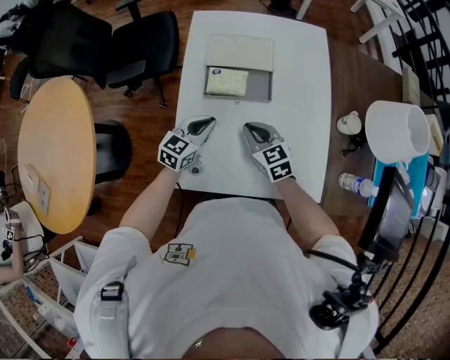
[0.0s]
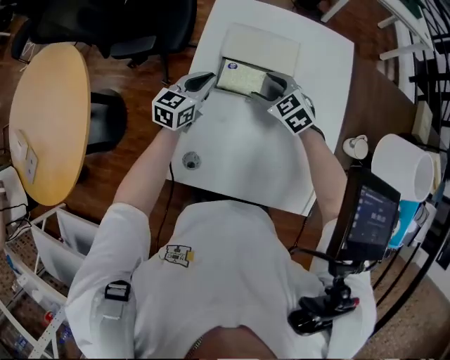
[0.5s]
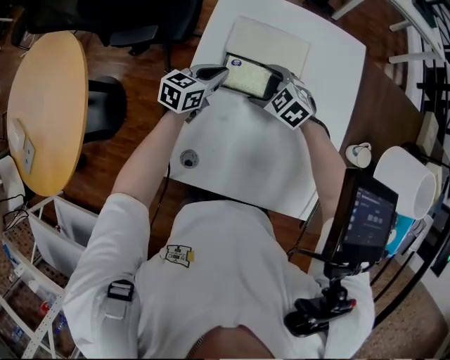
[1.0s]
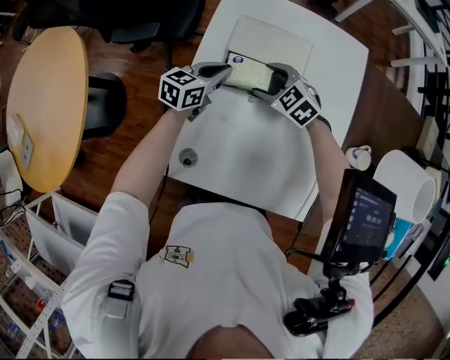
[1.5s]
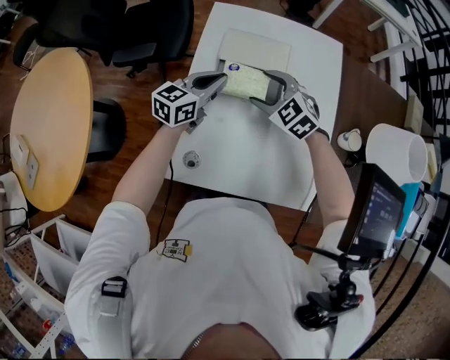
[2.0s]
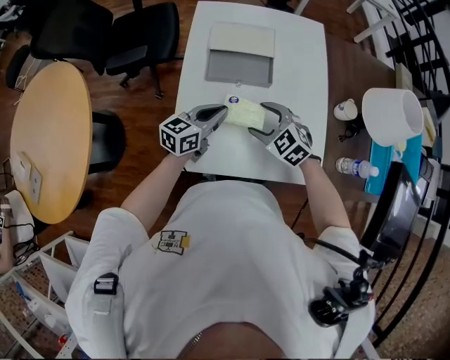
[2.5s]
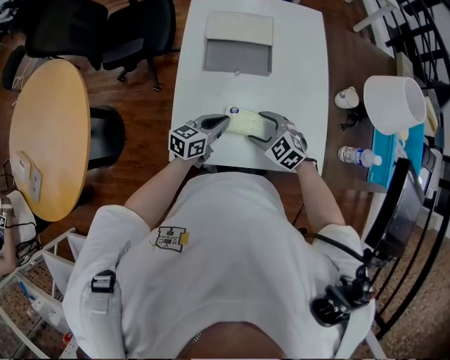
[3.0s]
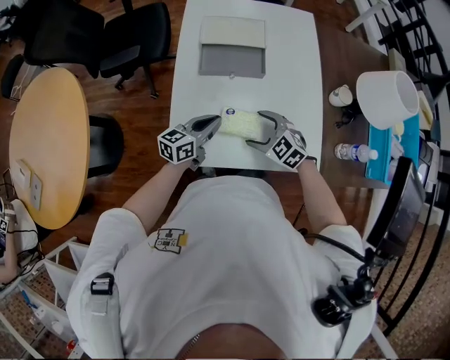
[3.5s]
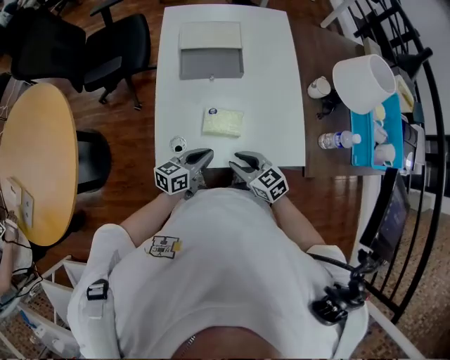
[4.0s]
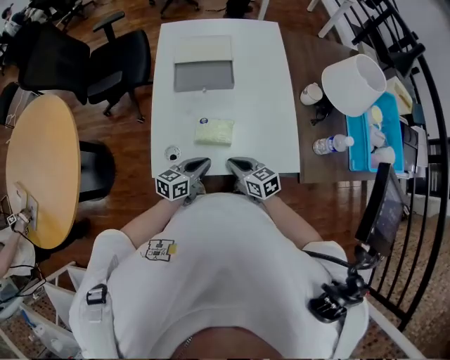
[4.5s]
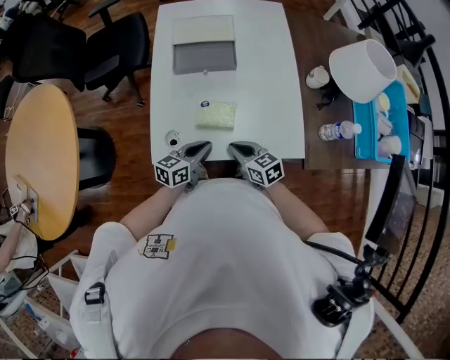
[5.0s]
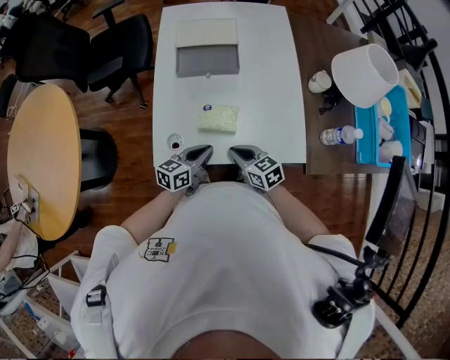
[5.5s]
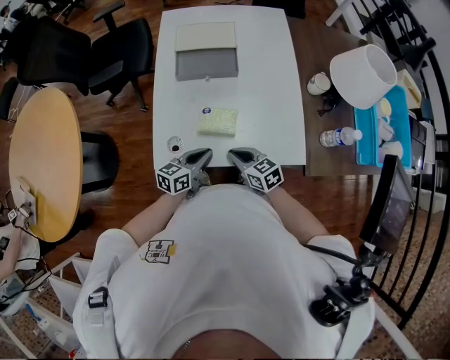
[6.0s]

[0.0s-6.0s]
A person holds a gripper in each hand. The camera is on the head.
0.0s to 2.0s: The grippers both shift forward and upward by approximately 15 cm. The right gripper changes its angle by roughly 40 degrees, and opens.
2.0s to 4.0s: The left gripper shifts roughly 30 cm backward and downward, and turns by approximately 20 degrees, while the right gripper goes some 30 cm backward, turns by about 40 degrees, and closes.
4.0s to 6.0s: The grippers make only small movements.

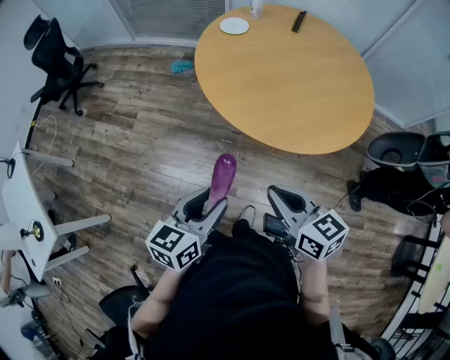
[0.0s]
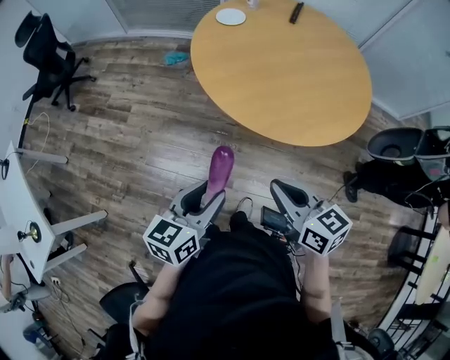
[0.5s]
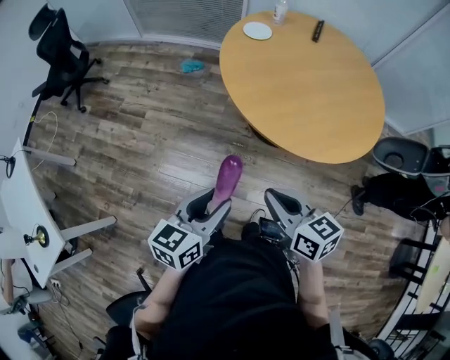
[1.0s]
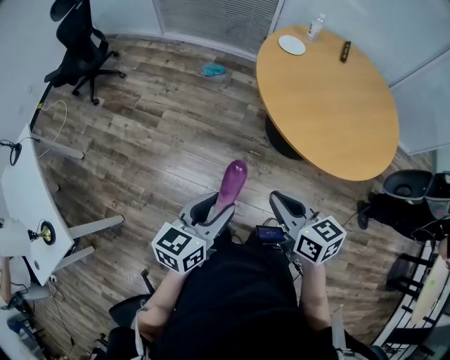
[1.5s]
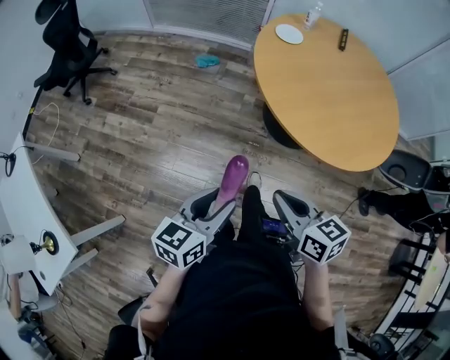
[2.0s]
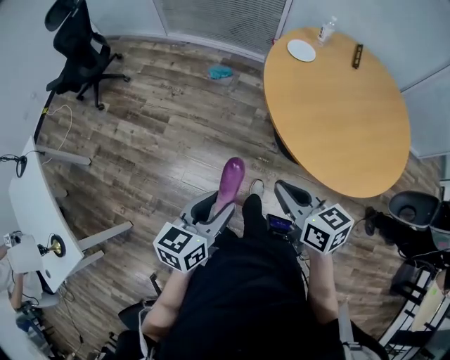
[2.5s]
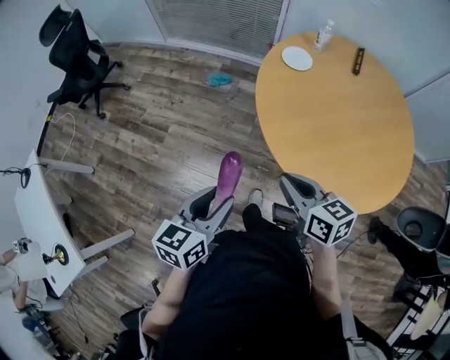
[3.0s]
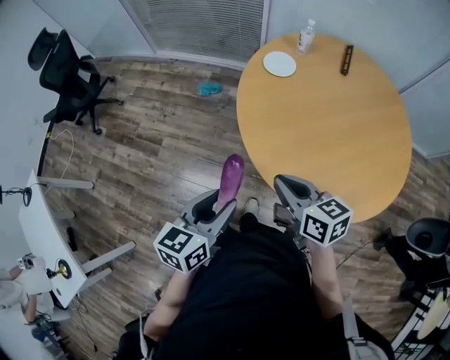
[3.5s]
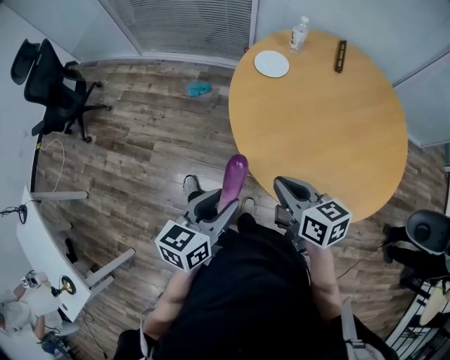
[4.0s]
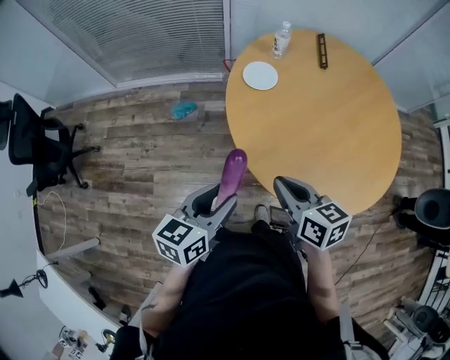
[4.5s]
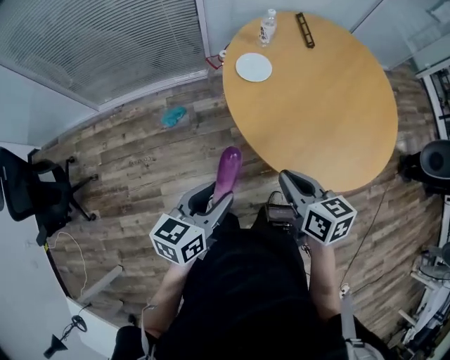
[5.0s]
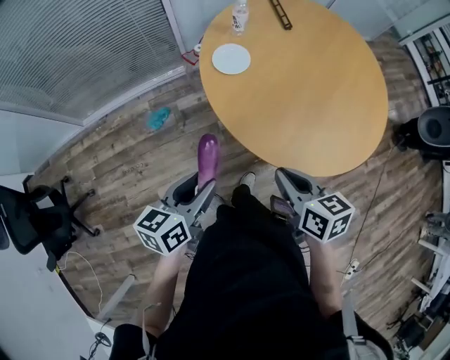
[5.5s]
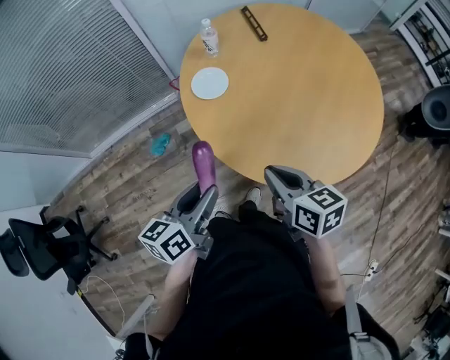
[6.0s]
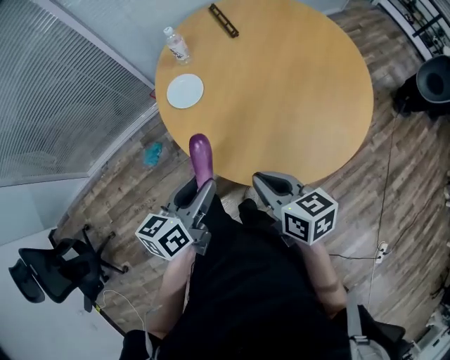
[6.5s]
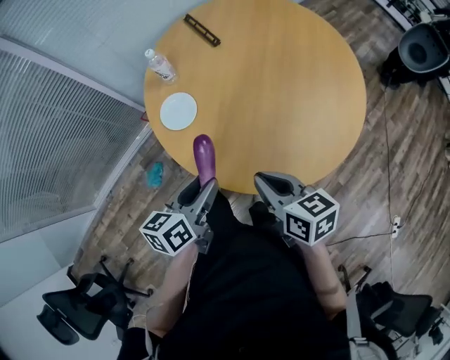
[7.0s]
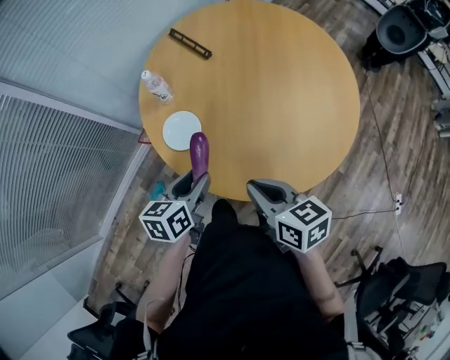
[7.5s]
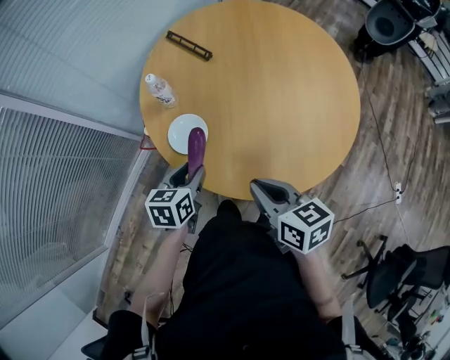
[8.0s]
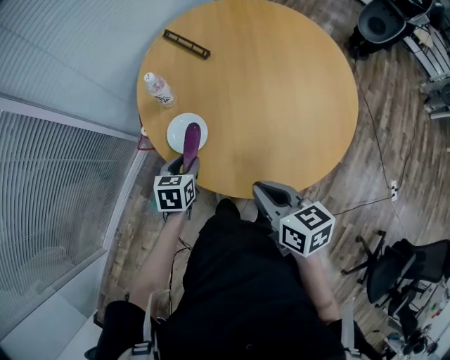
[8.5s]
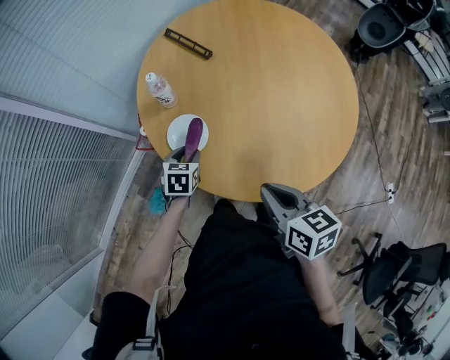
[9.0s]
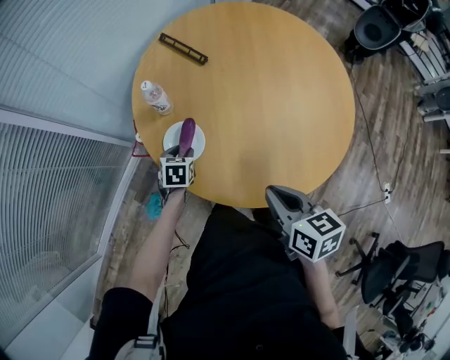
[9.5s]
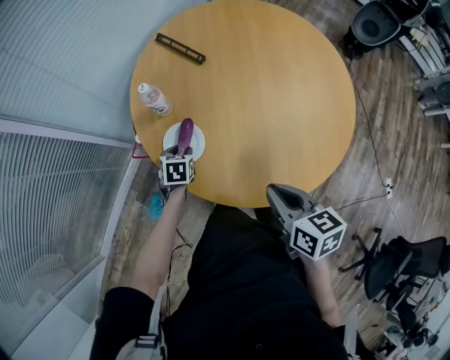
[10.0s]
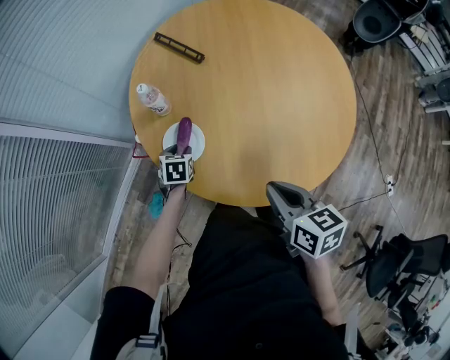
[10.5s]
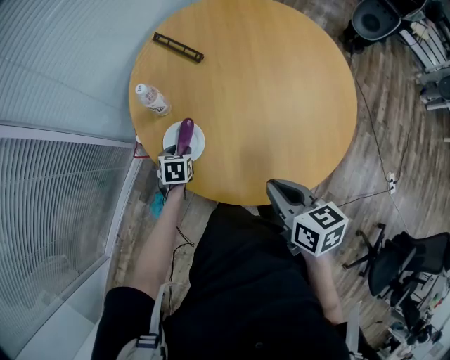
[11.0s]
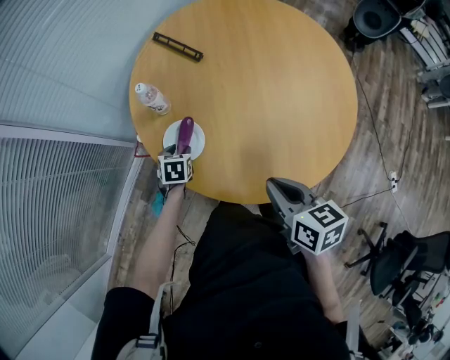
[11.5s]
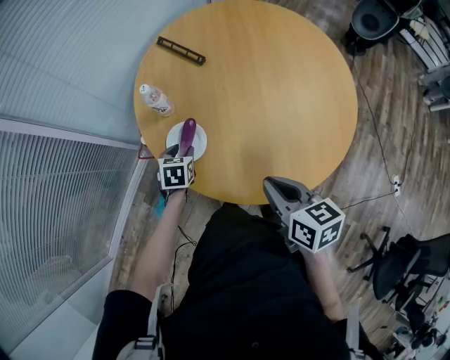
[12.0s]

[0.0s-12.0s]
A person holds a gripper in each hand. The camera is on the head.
0.0s to 2.0s: The grippers both shift to the left by about 25 cm.
2.0s to 4.0s: Both grippers move forward and to the right, about 30 cm.
4.0s to 6.0s: The right gripper changes place by some 15 cm, and turns by some 40 degrees. Meanwhile the left gripper ends up approximately 25 cm from where it was, and swivels roughly 30 degrees.
6.0s to 8.0s: The left gripper changes place by some 30 cm, and rotates roughly 40 degrees, while the right gripper ends up roughly 15 cm from where it was, and swivels some 30 degrees.
8.0s to 10.0s: The left gripper shifts about 20 cm downward and forward, and swivels about 20 degrees.
10.0s to 12.0s: There are only small adjustments of the grippers.

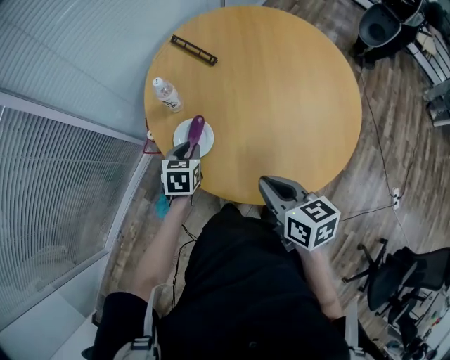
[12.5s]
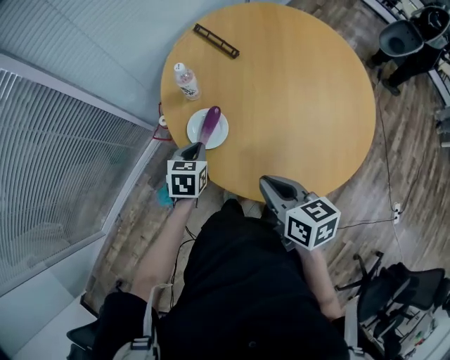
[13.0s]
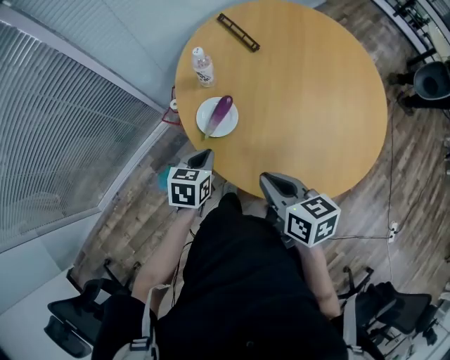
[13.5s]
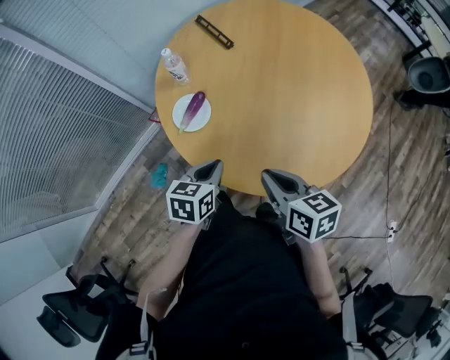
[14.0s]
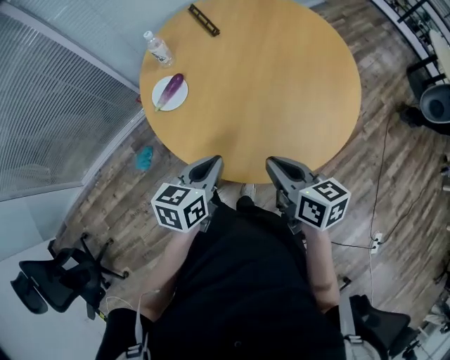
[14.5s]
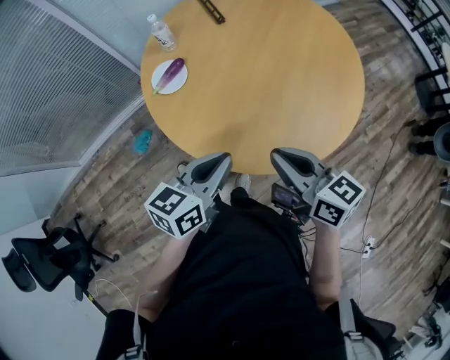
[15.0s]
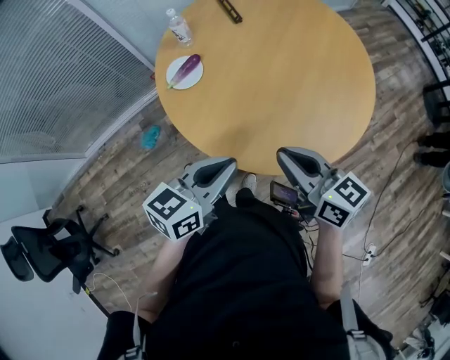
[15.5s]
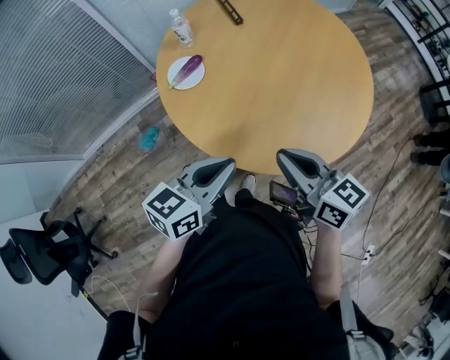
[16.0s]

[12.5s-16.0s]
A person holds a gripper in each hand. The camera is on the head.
12.5s to 14.5s: The left gripper heads backward, to the right and upward, covering about 35 cm, and turns by roughly 30 degrees, while the right gripper moves to the right and backward, roughly 20 cm.
14.5s to 16.0s: The left gripper heads upward and backward, covering about 10 cm. Meanwhile the right gripper ends up roughly 5 cm from where it was, and turns by roughly 20 degrees.

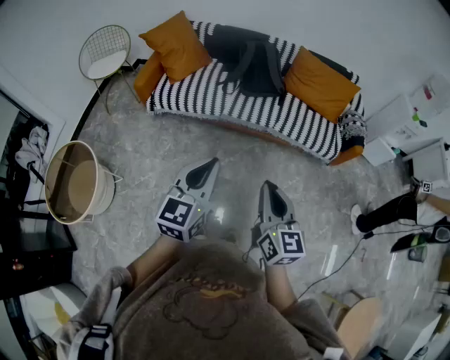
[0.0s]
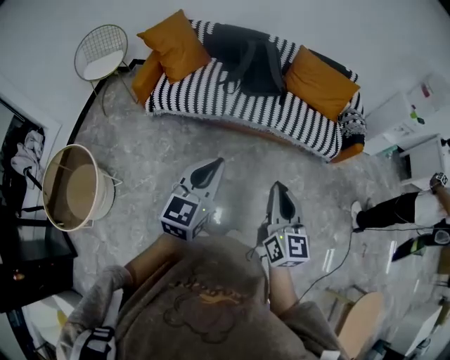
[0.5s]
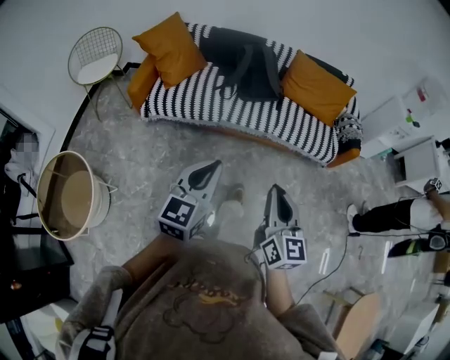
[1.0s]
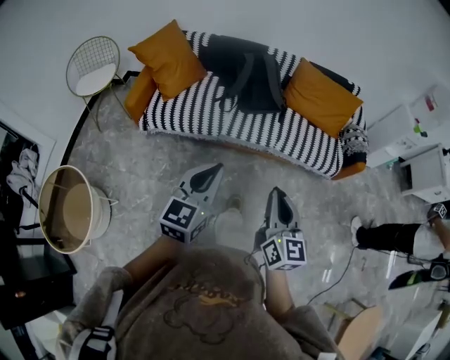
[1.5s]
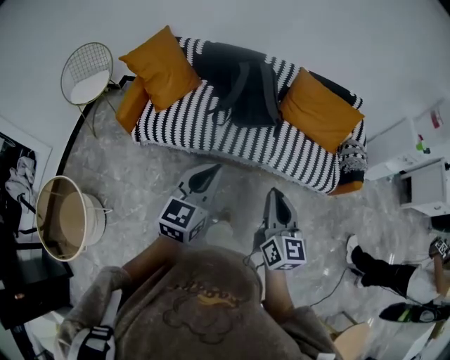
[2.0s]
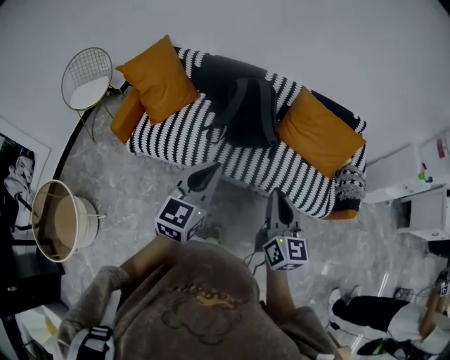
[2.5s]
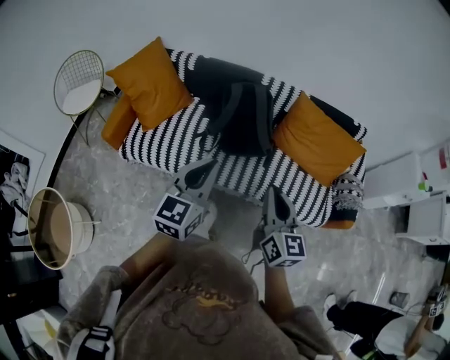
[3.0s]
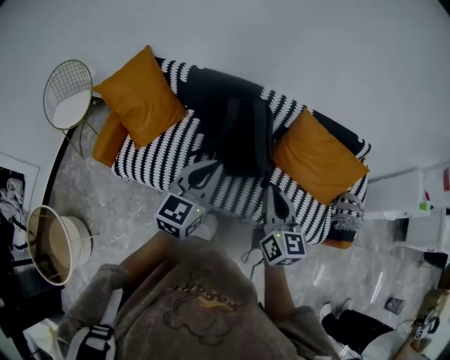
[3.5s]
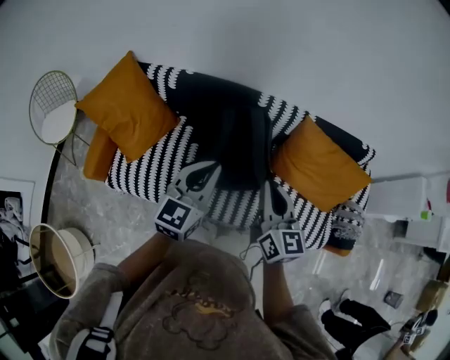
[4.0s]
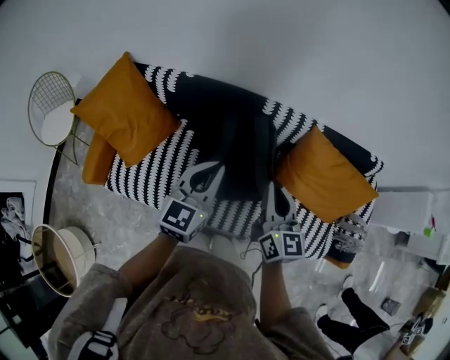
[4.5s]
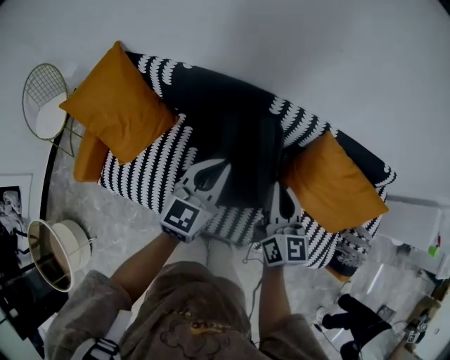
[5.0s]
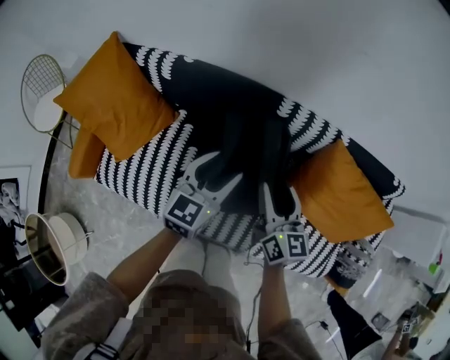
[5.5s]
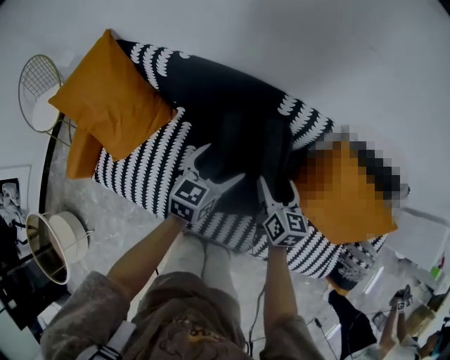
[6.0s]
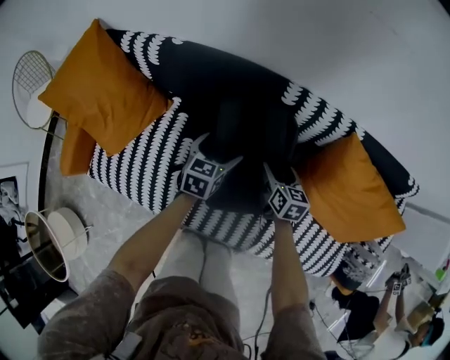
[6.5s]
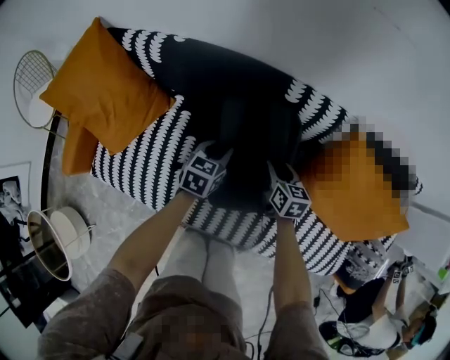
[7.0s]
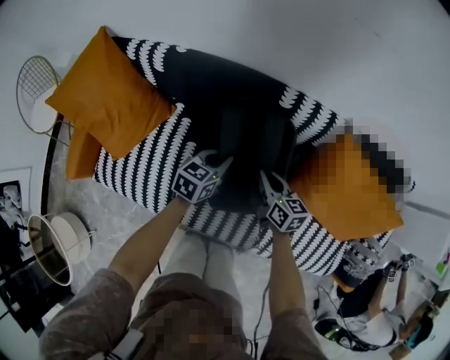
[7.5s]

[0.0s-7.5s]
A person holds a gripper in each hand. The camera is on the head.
0.0s to 2.0s: The two grippers go some 25 cm forward.
2.0s to 4.0s: Both grippers are carried forward, roughly 50 cm.
4.0s to 5.5s: The left gripper moves downward and forward, approximately 25 cm, and opens; the right gripper goes approximately 25 cm forward and downward, and opens up.
5.5s to 7.5s: Both grippers move downward, about 20 cm. The left gripper changes its angle by roughly 20 degrees, and closes up. The right gripper turns by some 20 degrees, and closes up.
